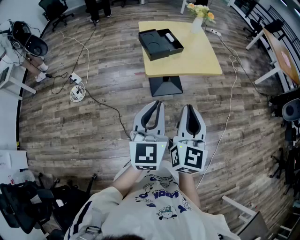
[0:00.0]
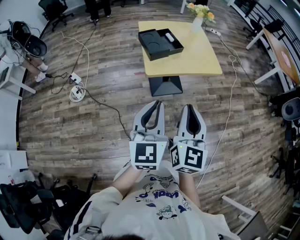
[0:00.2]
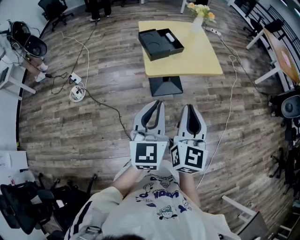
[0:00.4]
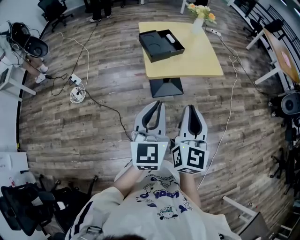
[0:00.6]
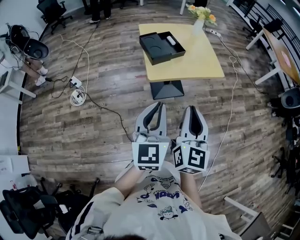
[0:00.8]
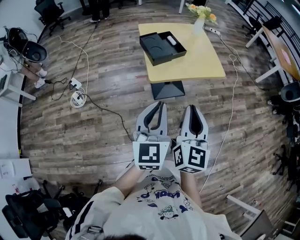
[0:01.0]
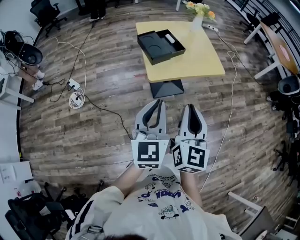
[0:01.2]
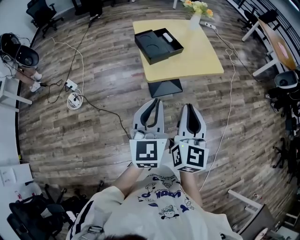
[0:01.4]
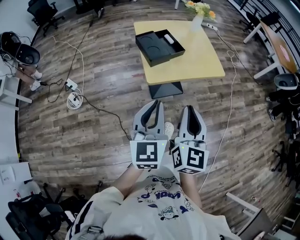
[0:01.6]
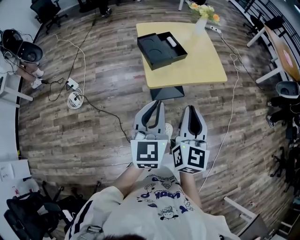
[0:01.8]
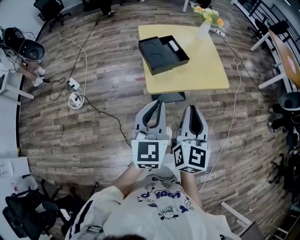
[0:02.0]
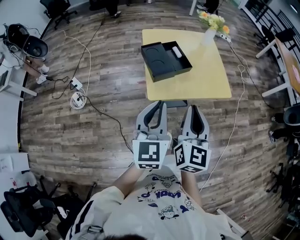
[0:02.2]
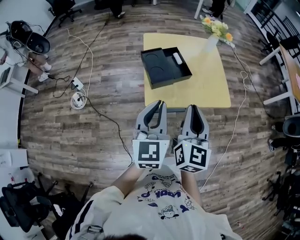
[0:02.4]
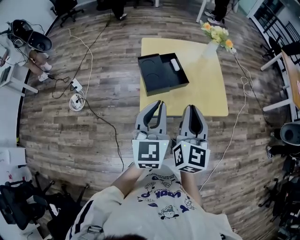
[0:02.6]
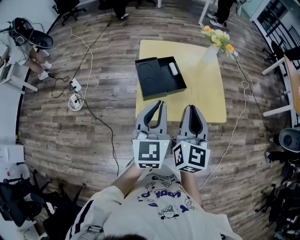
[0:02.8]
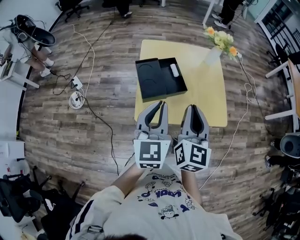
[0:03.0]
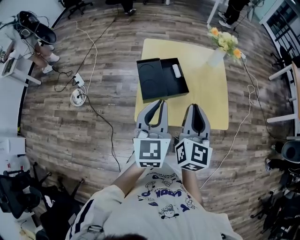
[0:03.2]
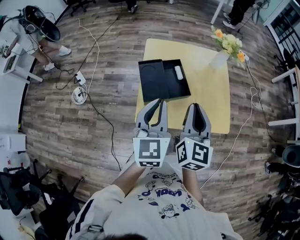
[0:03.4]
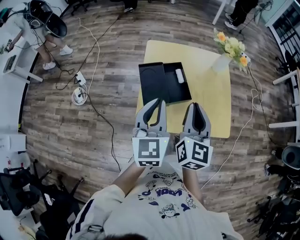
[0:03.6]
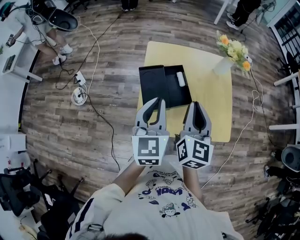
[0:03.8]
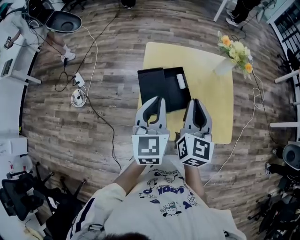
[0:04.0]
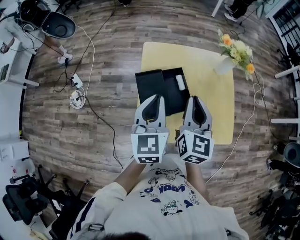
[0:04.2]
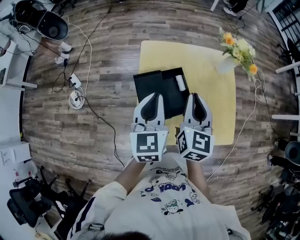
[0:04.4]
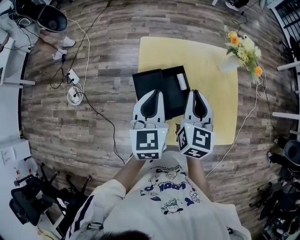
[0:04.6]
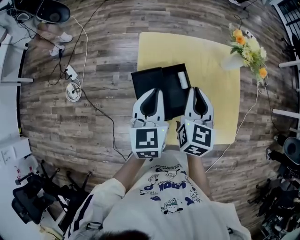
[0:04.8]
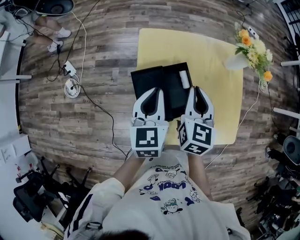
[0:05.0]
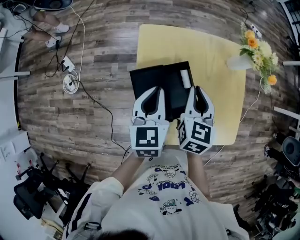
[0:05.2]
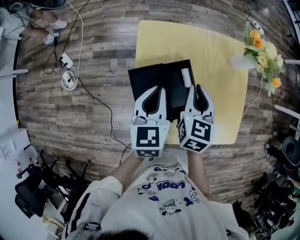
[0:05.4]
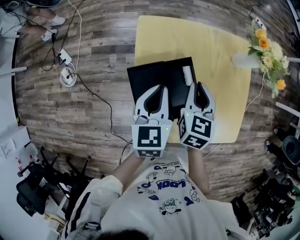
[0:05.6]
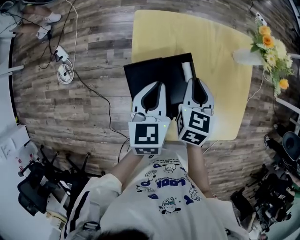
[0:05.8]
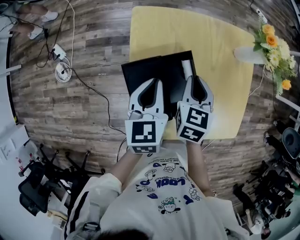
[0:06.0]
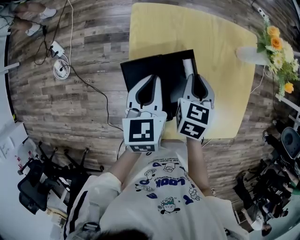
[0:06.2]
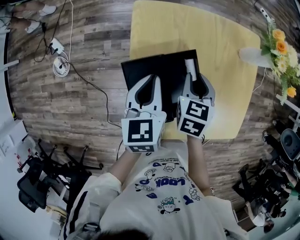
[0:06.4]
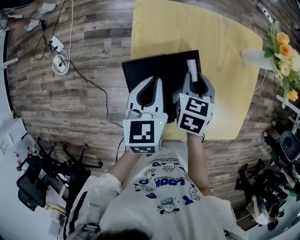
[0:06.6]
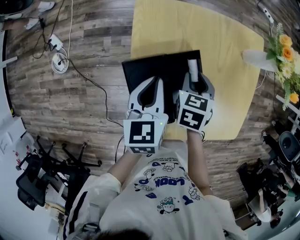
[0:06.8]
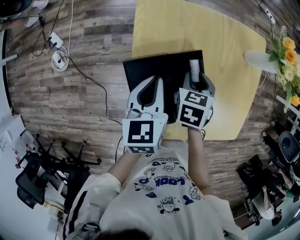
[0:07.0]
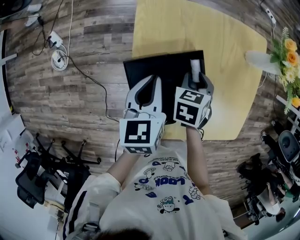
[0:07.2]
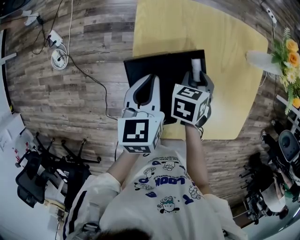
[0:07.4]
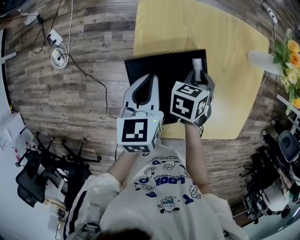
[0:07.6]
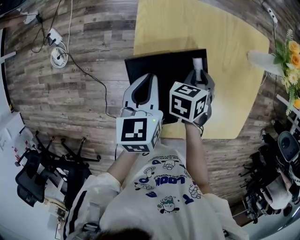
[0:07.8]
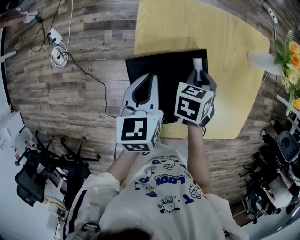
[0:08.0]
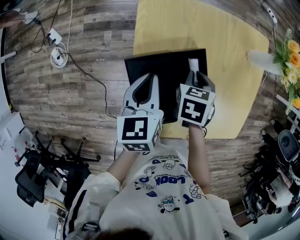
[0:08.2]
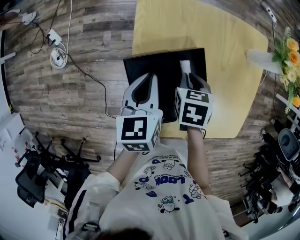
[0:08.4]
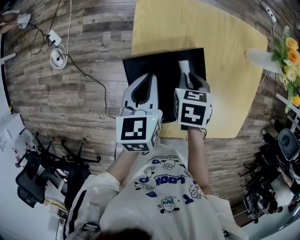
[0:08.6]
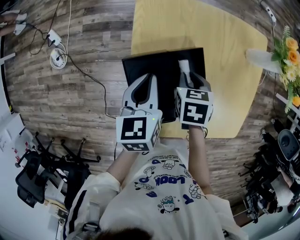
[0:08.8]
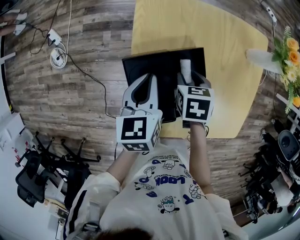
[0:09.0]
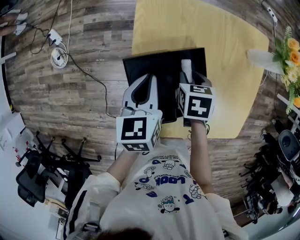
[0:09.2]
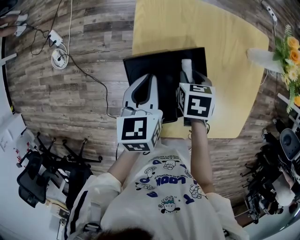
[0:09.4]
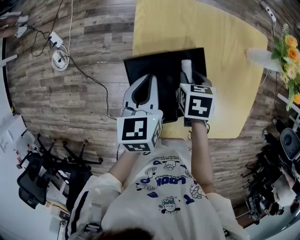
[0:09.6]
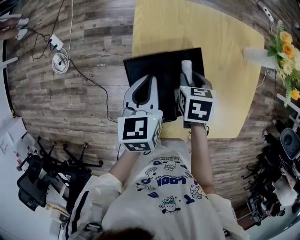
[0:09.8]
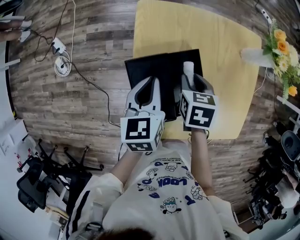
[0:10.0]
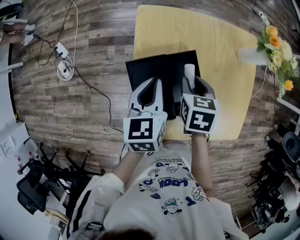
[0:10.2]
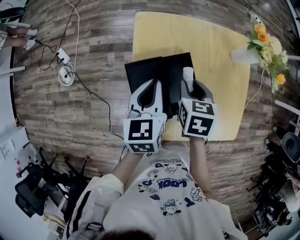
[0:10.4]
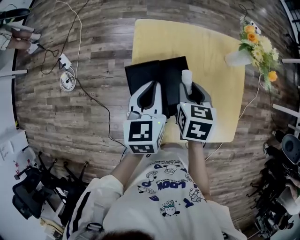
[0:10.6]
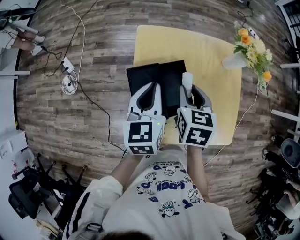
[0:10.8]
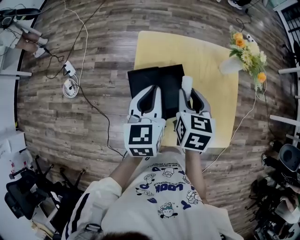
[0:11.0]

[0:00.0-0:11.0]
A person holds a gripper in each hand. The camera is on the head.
0:00.0 to 0:01.6: Both grippers travel together forward, roughly 5 cm.
0:01.6 to 0:03.2: Both grippers move forward, some 30 cm.
0:03.2 to 0:04.8: Both grippers travel together forward, approximately 20 cm.
0:04.8 to 0:06.2: Both grippers move downward, roughly 10 cm. The right gripper swivels some 30 degrees.
0:06.2 to 0:07.8: The right gripper goes approximately 5 cm downward, and changes its angle by some 30 degrees.
0:07.8 to 0:09.4: The right gripper changes its angle by some 20 degrees.
0:09.4 to 0:11.0: Both grippers move upward, some 15 cm. The right gripper angles its fingers upward, by about 30 degrees.

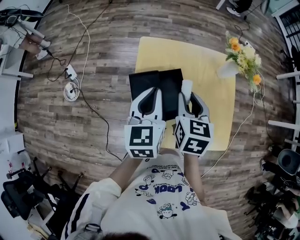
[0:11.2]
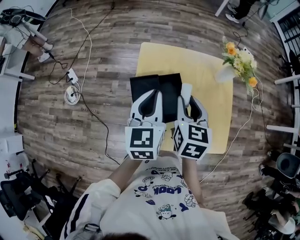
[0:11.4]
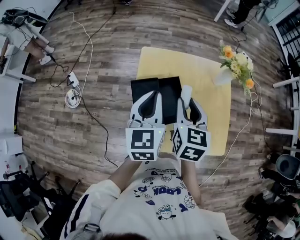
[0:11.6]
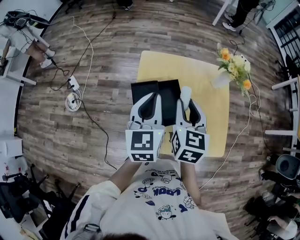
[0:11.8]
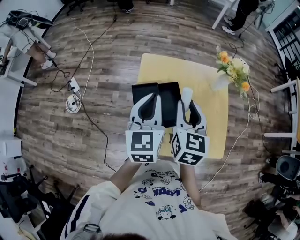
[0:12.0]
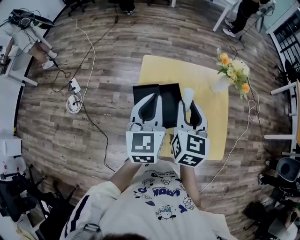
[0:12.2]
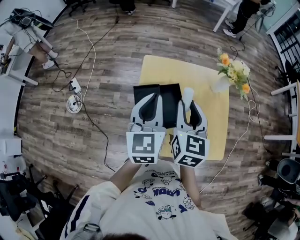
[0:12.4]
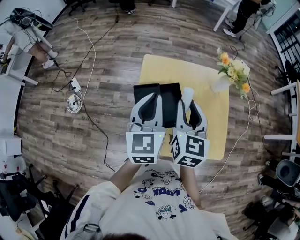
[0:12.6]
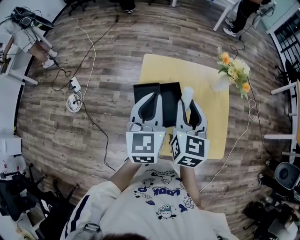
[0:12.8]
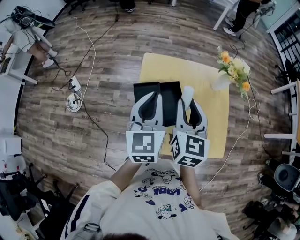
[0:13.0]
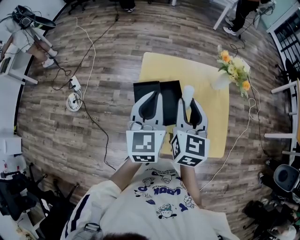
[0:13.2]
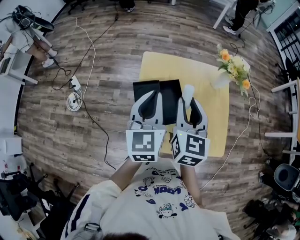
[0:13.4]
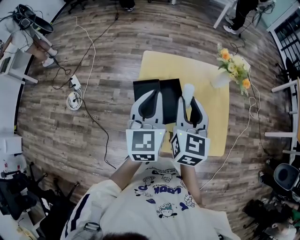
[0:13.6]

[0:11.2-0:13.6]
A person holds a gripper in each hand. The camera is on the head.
0:11.2 to 0:12.4: The grippers both shift upward by about 5 cm.
0:12.4 to 0:13.6: Both grippers stay about where they are.

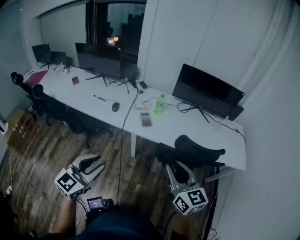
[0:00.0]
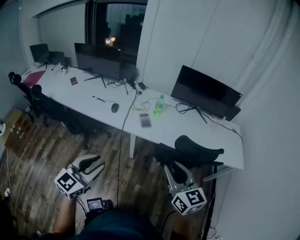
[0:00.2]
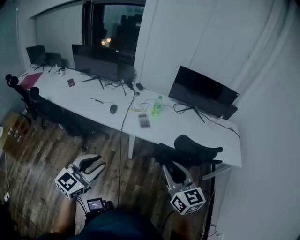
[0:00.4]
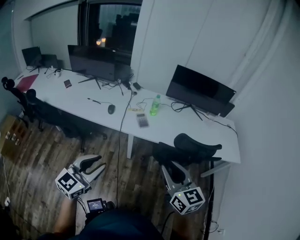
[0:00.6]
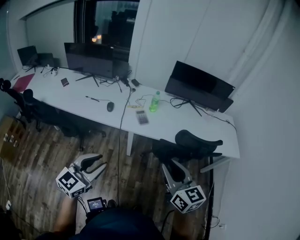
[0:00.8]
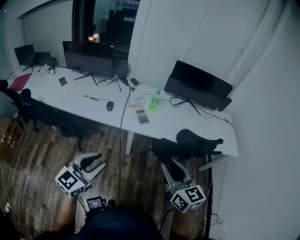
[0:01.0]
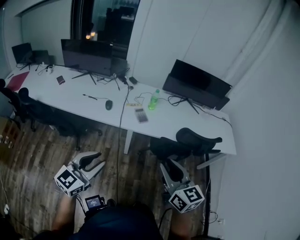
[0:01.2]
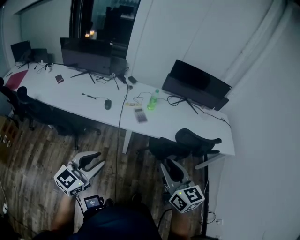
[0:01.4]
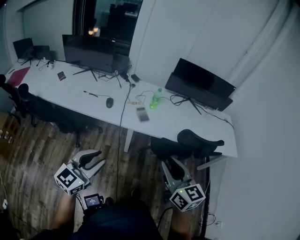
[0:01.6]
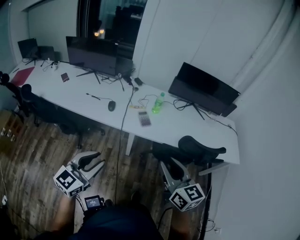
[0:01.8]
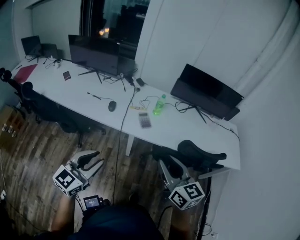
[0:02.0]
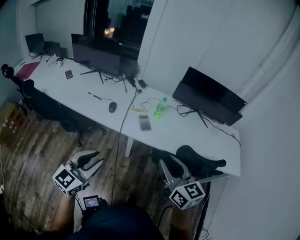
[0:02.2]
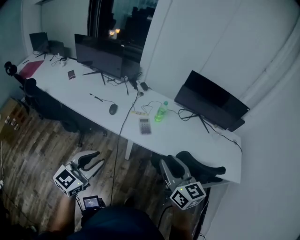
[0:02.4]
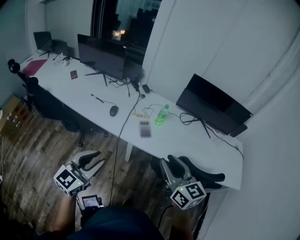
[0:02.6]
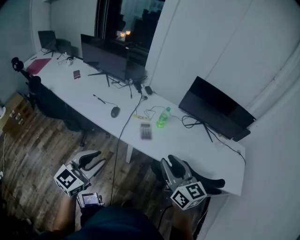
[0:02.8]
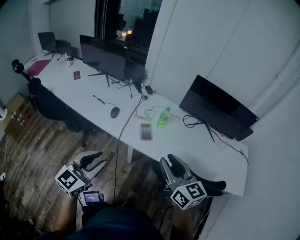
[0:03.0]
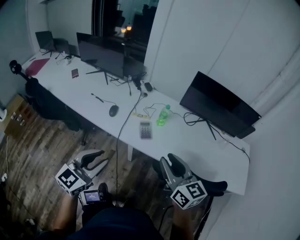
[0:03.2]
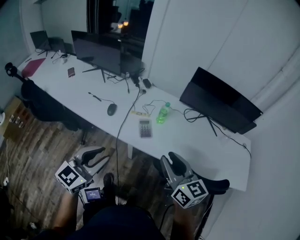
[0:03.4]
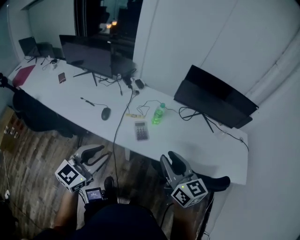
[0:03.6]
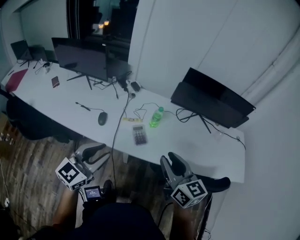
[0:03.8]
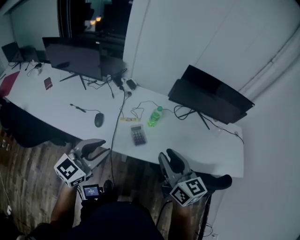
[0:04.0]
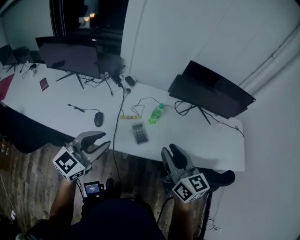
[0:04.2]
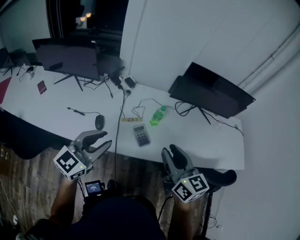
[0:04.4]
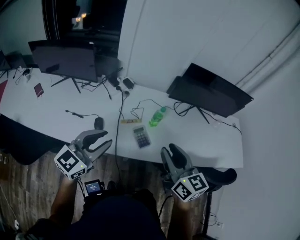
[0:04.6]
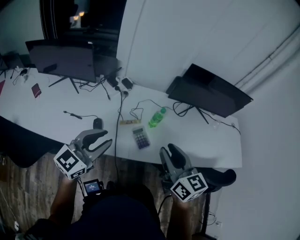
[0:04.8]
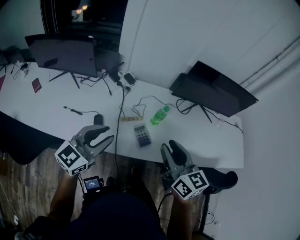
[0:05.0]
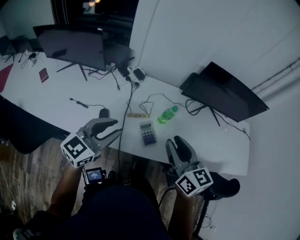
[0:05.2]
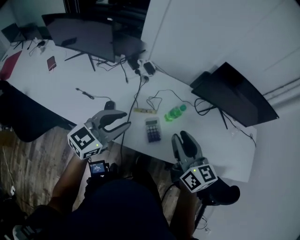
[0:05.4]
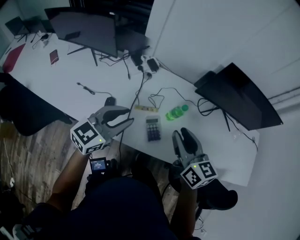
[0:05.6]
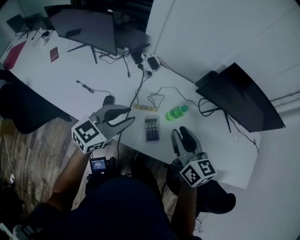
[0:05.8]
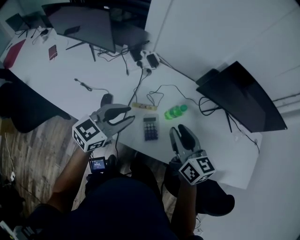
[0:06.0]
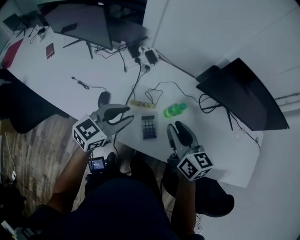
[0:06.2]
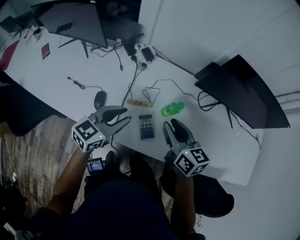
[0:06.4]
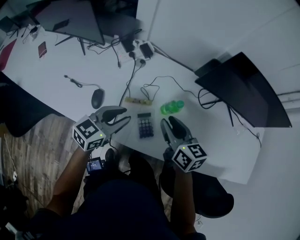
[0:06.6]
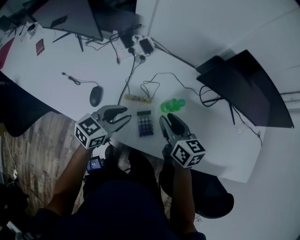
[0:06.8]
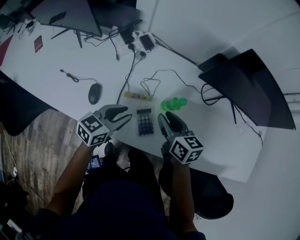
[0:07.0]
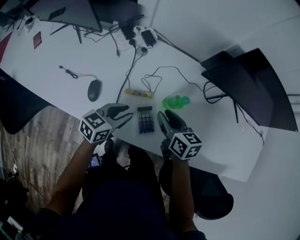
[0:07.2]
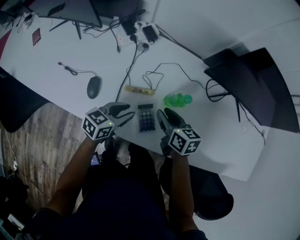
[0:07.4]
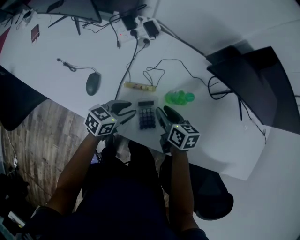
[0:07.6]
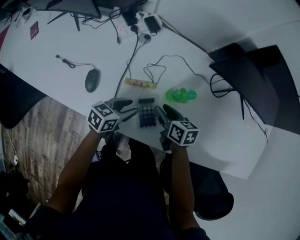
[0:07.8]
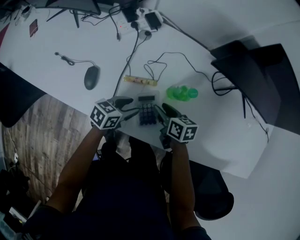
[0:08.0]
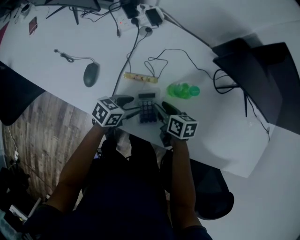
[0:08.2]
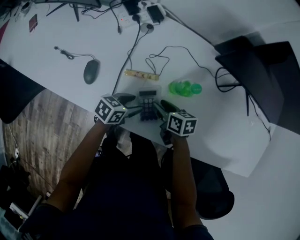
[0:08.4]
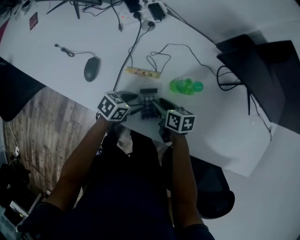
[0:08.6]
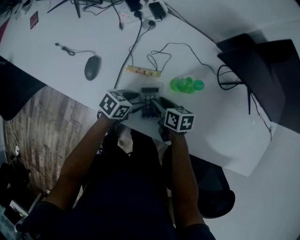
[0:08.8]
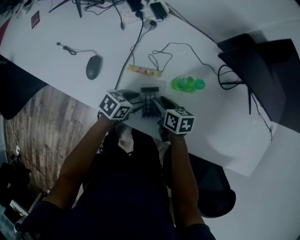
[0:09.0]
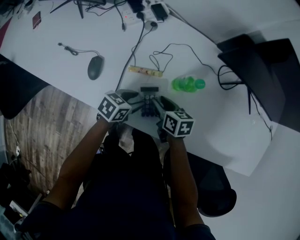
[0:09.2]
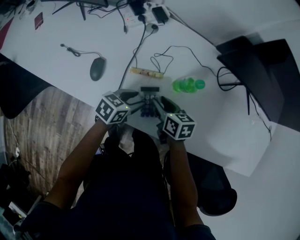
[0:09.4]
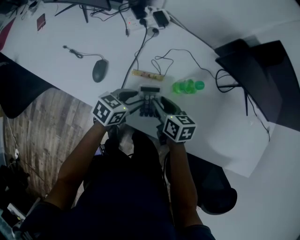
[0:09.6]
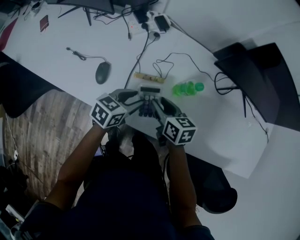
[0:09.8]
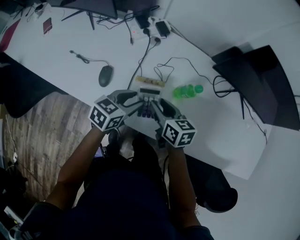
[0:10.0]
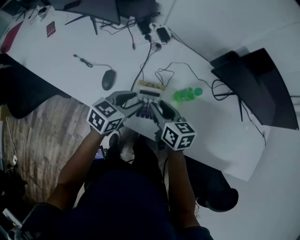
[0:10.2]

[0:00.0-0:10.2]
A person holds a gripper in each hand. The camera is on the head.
0:00.0 to 0:01.4: Both grippers travel together to the left, roughly 10 cm.
0:01.4 to 0:03.0: The left gripper shifts about 15 cm forward and to the right; the right gripper shifts approximately 20 cm forward.
0:03.0 to 0:04.4: The left gripper moves forward, about 25 cm, and swivels about 20 degrees. Meanwhile the right gripper heads forward and to the left, covering approximately 15 cm.
0:04.4 to 0:05.8: The grippers both shift forward and downward by about 15 cm.
0:05.8 to 0:07.2: The right gripper shifts about 20 cm downward and forward, and rotates roughly 20 degrees; the left gripper travels downward by approximately 20 cm, and turns by approximately 30 degrees.
0:07.2 to 0:08.8: Both grippers travel together downward, approximately 15 cm. The left gripper rotates about 20 degrees. The right gripper changes its angle by roughly 20 degrees.
0:08.8 to 0:10.2: The left gripper heads upward and to the left, covering roughly 20 cm, and turns by roughly 30 degrees. Meanwhile the right gripper moves upward, about 15 cm, and rotates roughly 20 degrees.
